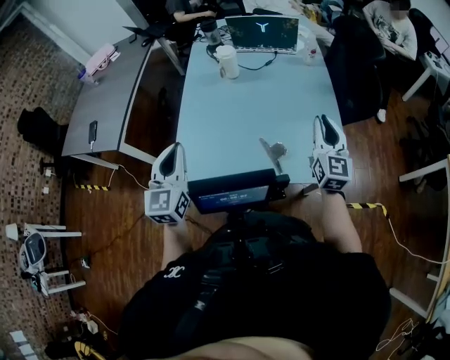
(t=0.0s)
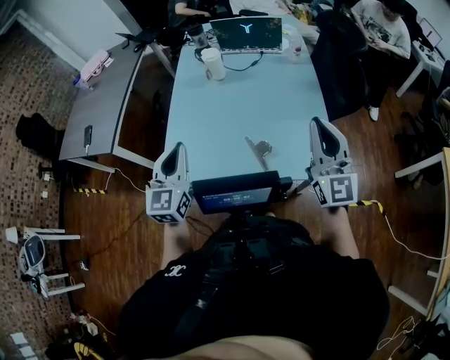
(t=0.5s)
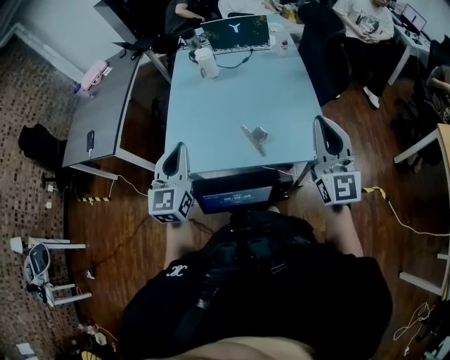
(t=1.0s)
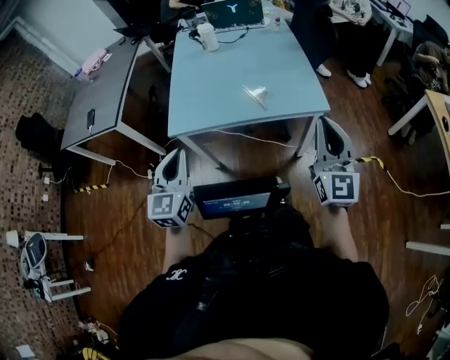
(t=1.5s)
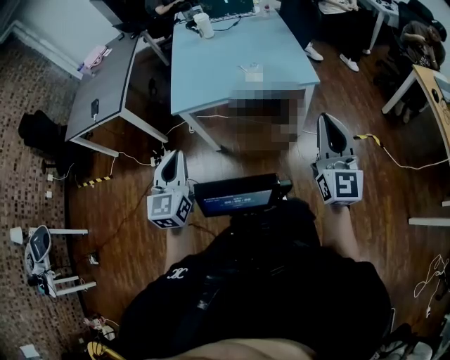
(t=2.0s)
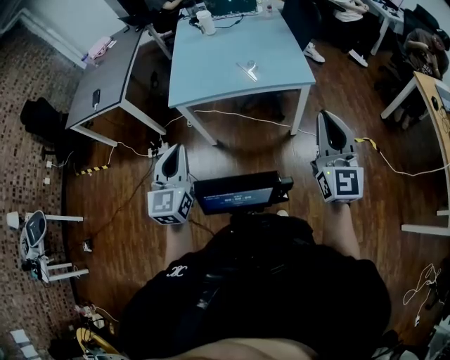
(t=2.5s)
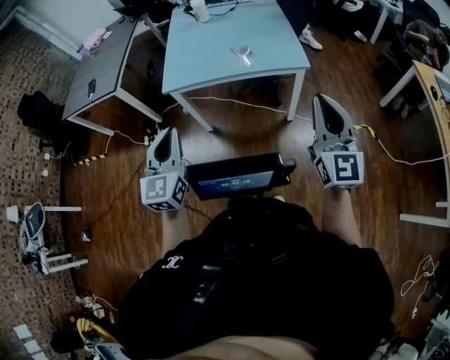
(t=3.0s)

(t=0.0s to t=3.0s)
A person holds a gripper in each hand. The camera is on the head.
t=0.0s - t=1.5s: Both grippers move backward, about 35 cm.
t=1.5s - t=3.0s: Both grippers travel together backward, approximately 20 cm.

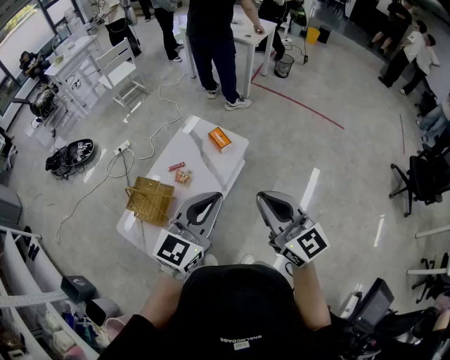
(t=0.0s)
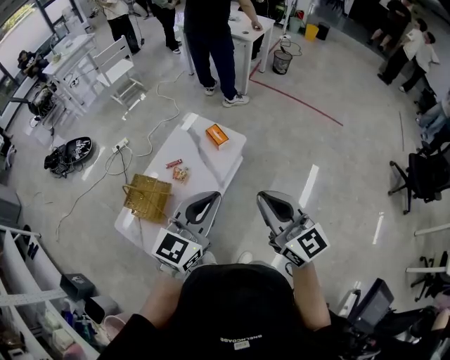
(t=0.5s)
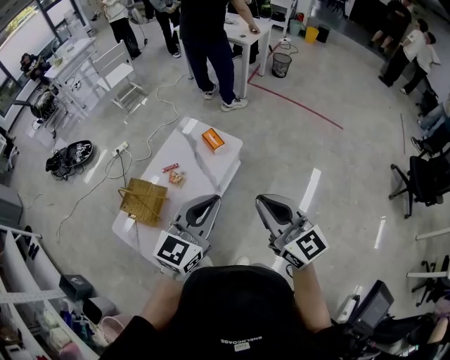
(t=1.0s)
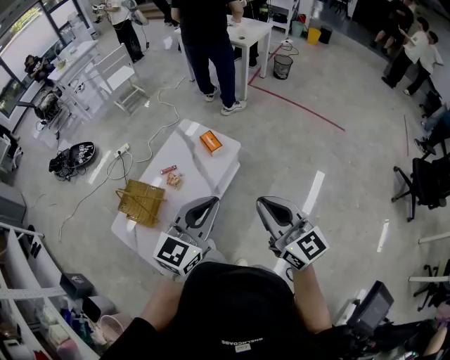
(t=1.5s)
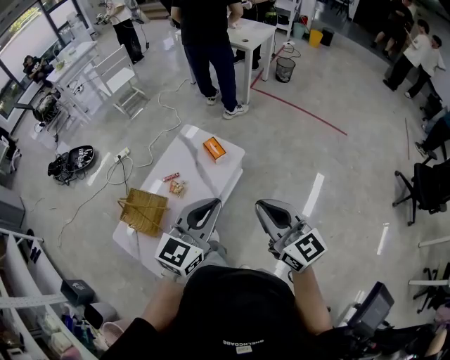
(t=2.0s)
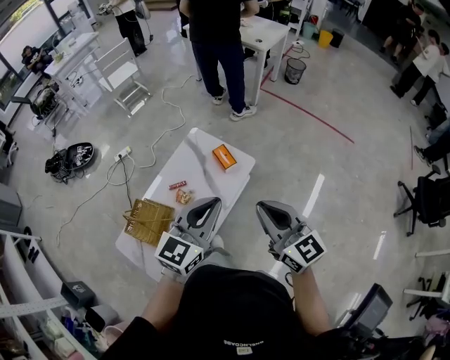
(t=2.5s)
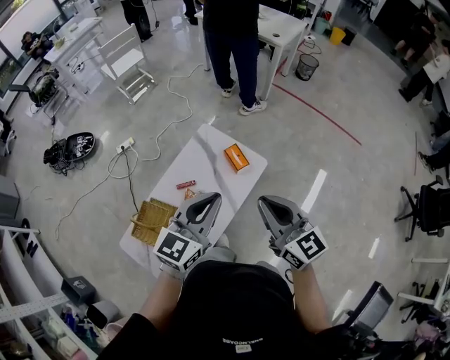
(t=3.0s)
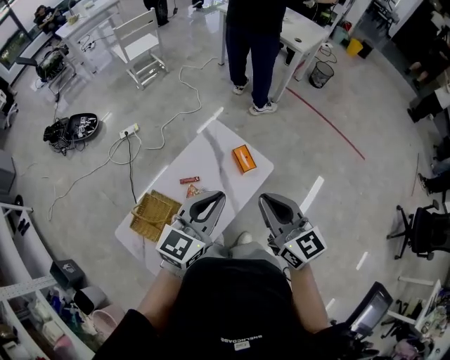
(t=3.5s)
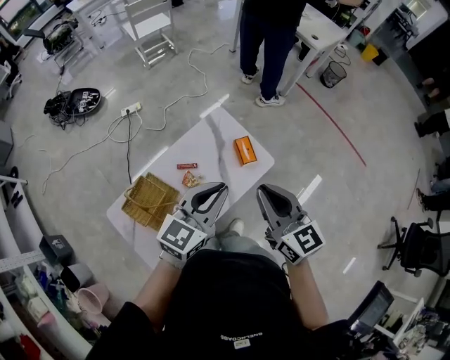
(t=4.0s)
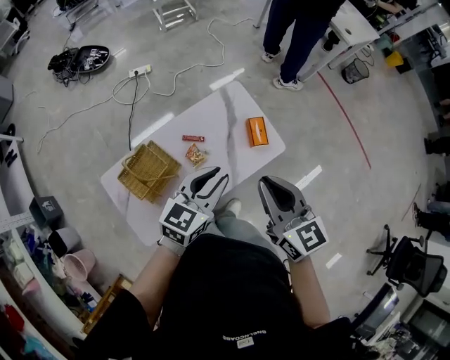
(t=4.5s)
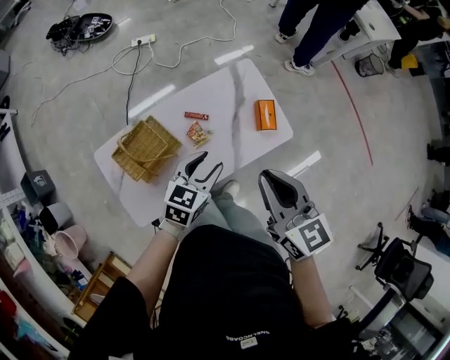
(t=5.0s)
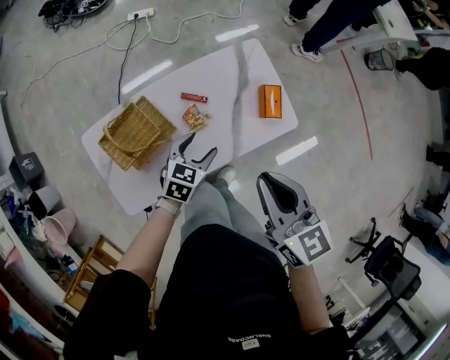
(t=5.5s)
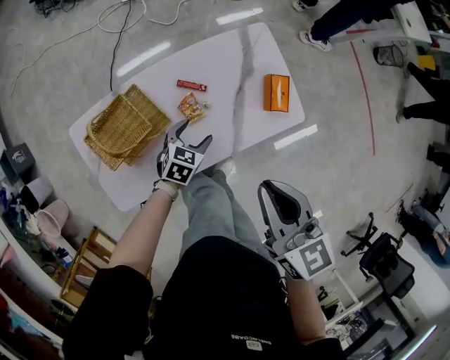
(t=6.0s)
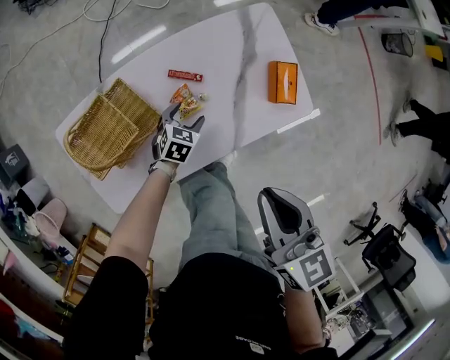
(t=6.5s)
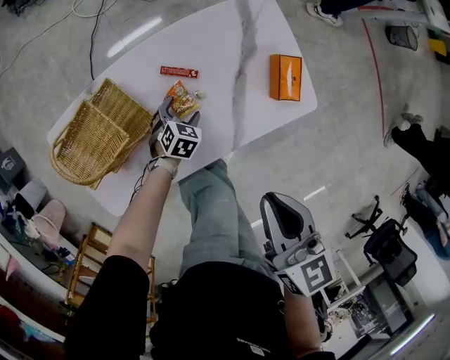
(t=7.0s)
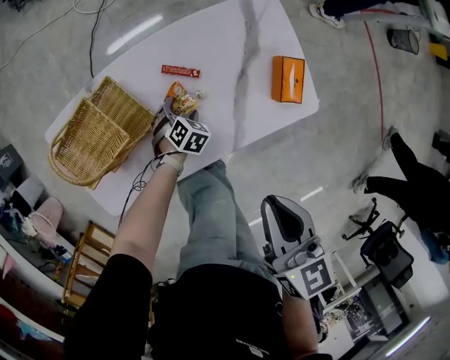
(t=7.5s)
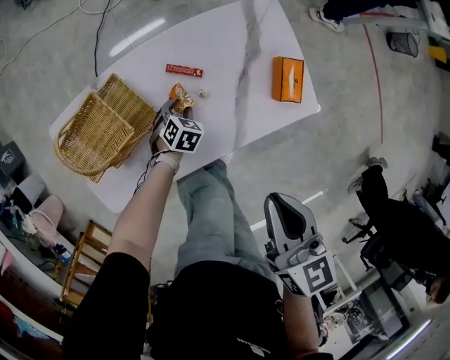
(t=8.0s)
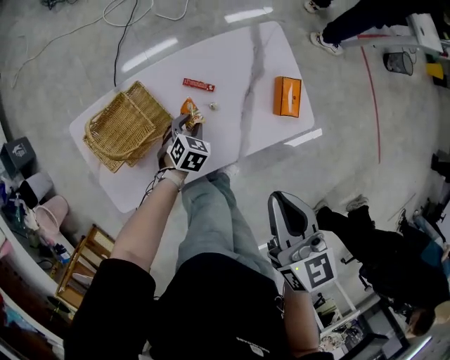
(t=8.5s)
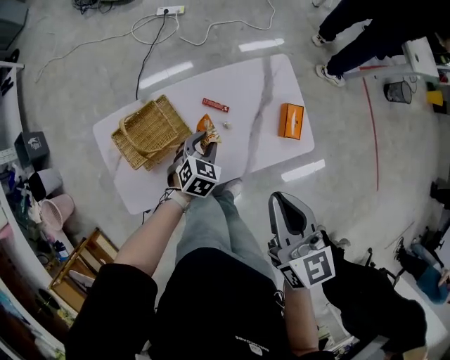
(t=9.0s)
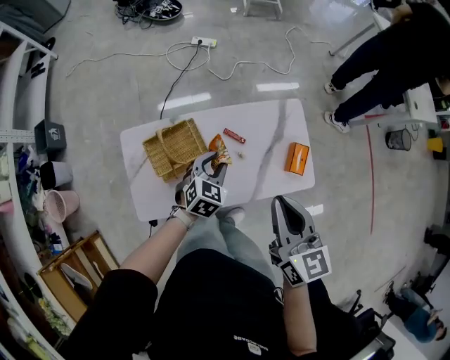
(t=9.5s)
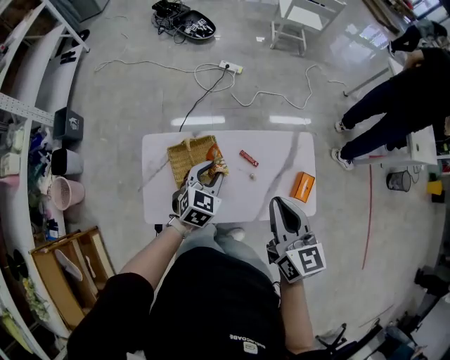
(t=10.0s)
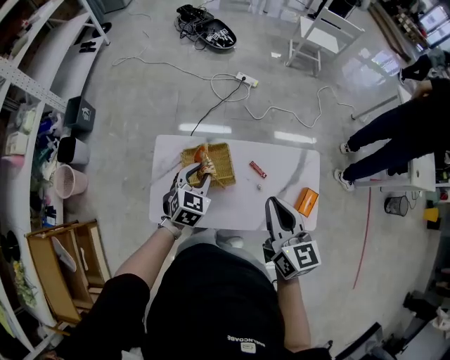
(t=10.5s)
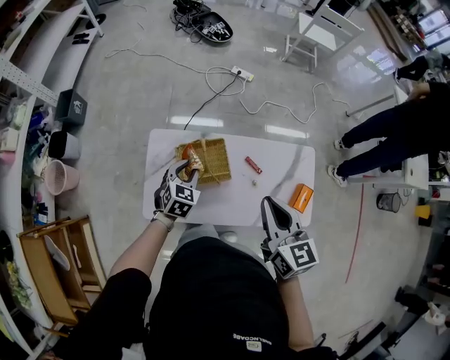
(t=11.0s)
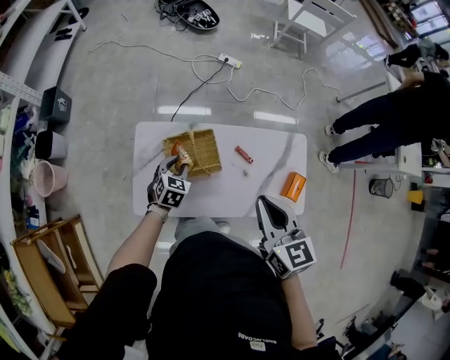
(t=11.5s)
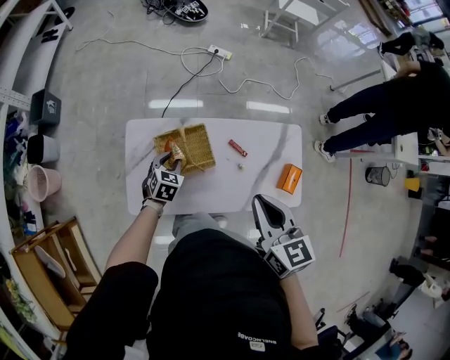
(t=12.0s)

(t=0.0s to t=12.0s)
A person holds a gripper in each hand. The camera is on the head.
t=0.0s - t=2.0s: The right gripper goes roughly 5 cm to the right, while the left gripper is displaced to the right and forward by roughly 10 cm.
t=2.0s - t=4.0s: The two grippers go roughly 30 cm forward and to the left.
t=4.0s - t=6.0s: The right gripper heads downward and to the left, covering about 20 cm, and swivels about 20 degrees; the left gripper heads downward, covering some 40 cm, points its fingers roughly 40 degrees further downward, and opens its fingers.
t=6.0s - t=8.0s: The left gripper shifts about 15 cm downward, rotates roughly 20 degrees, and closes up. Meanwhile the right gripper heads downward, covering approximately 10 cm.
t=8.0s - t=10.0s: The right gripper is displaced upward and to the left by approximately 20 cm, and swivels about 30 degrees; the left gripper travels upward by about 40 cm, and angles its fingers upward, by roughly 30 degrees.
t=10.0s - t=12.0s: The left gripper shifts roughly 20 cm downward and to the left. Meanwhile the right gripper heads to the left, covering some 5 cm.

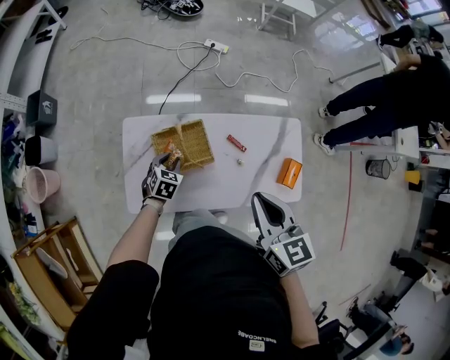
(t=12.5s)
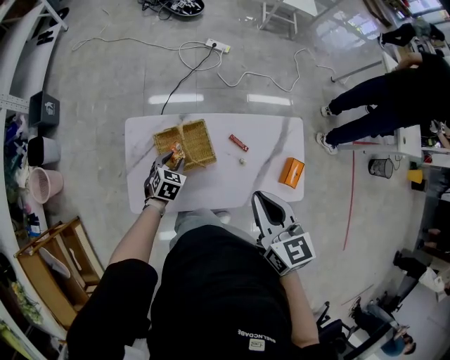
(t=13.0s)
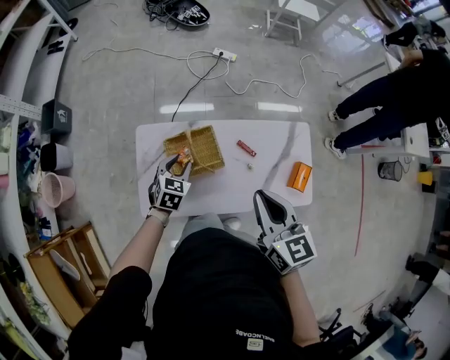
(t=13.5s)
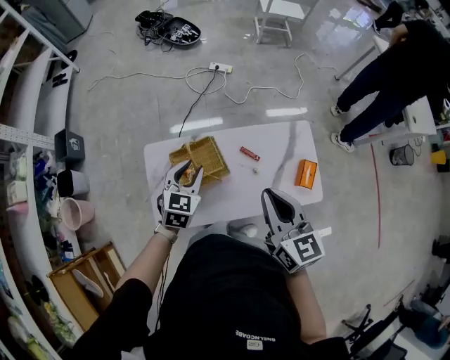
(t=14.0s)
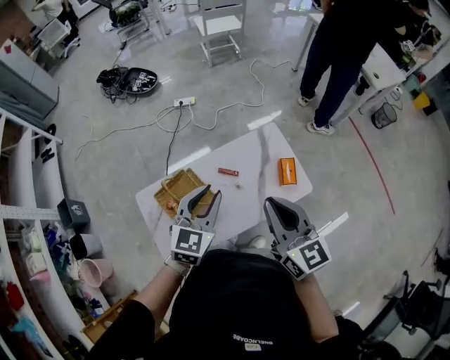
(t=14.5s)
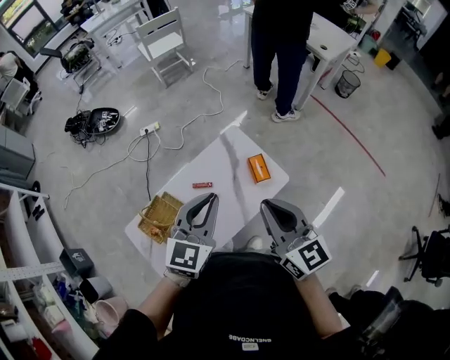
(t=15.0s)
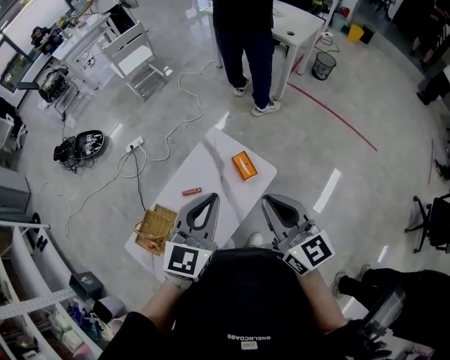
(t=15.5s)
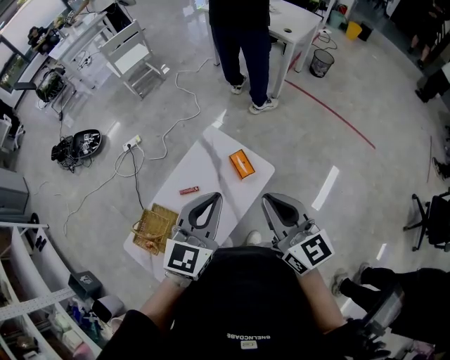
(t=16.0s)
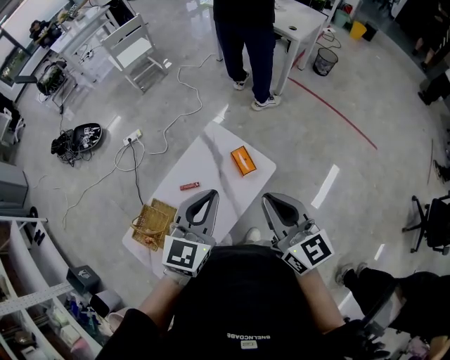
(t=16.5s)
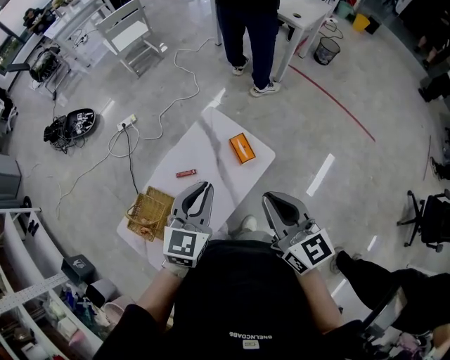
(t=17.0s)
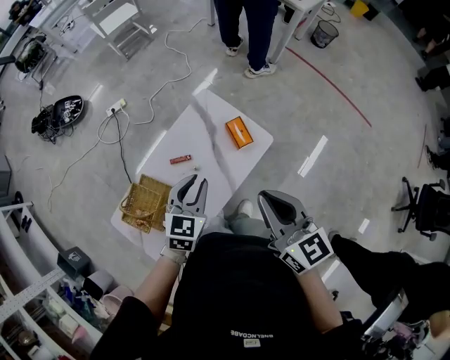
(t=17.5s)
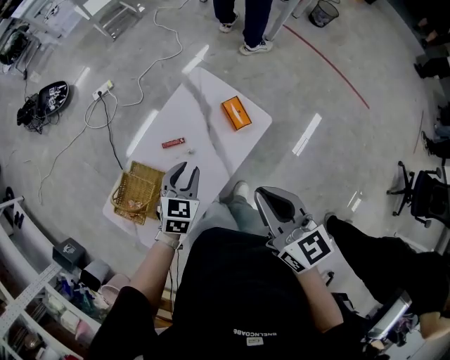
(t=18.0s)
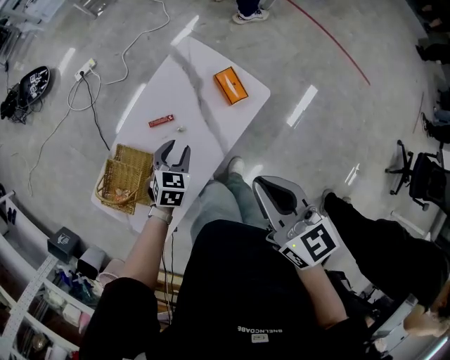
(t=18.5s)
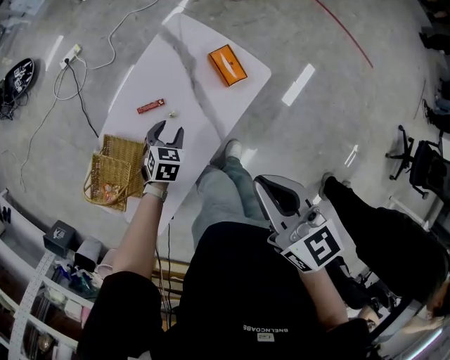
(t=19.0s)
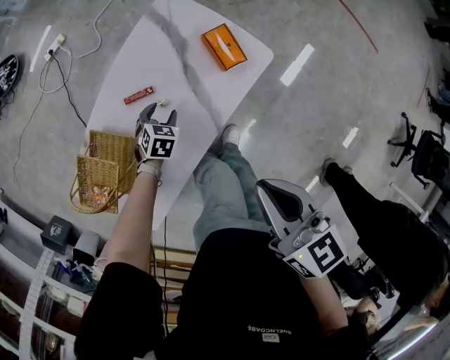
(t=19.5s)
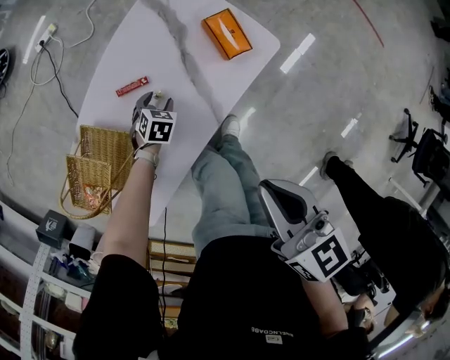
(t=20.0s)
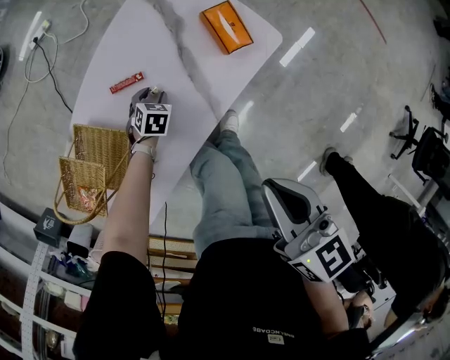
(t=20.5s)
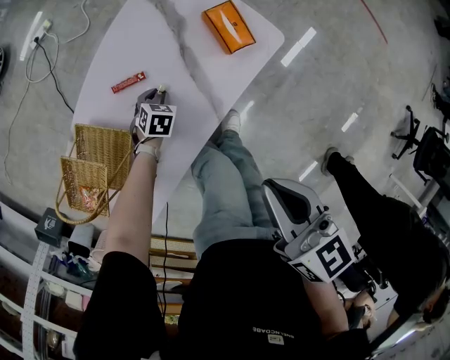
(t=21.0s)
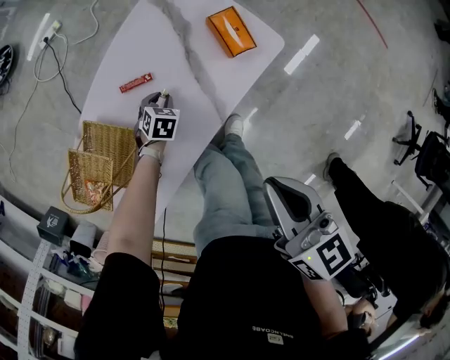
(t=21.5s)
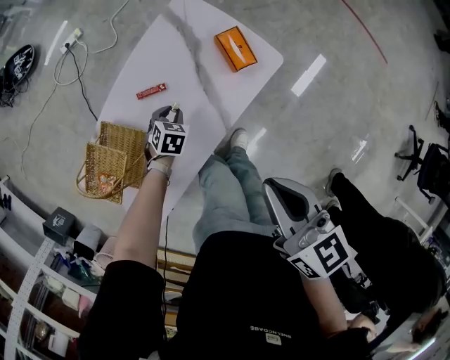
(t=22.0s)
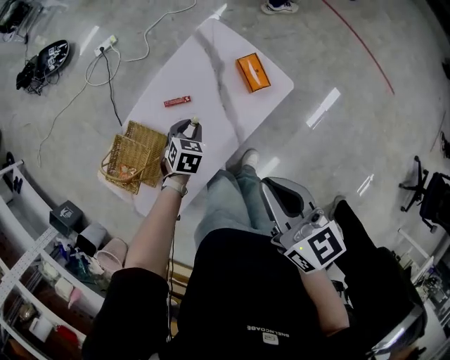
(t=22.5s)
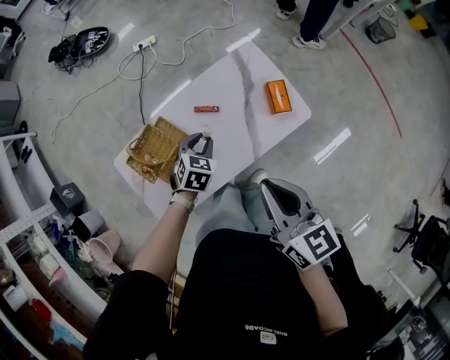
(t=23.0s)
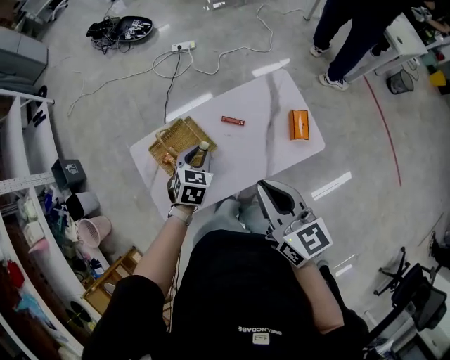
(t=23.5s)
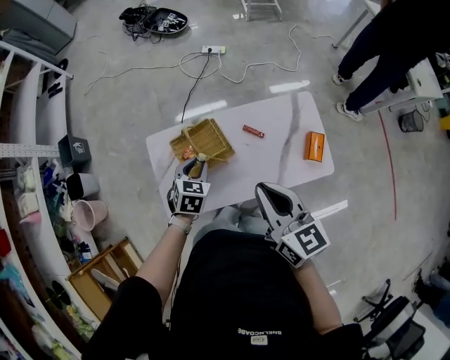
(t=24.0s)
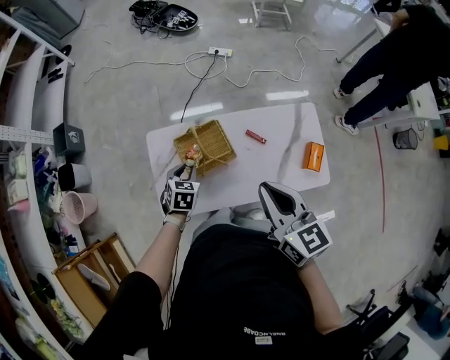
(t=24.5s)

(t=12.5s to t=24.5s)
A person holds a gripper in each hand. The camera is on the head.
t=12.5s - t=14.5s: The left gripper shifts approximately 40 cm upward and to the right, and angles its fingers upward, by approximately 30 degrees; the right gripper travels to the right and upward by about 15 cm, and turns by some 30 degrees.
t=14.5s - t=16.5s: The two grippers go some 20 cm to the right. The left gripper rotates approximately 20 degrees; the right gripper changes its angle by some 20 degrees.
t=16.5s - t=18.5s: The left gripper goes some 35 cm downward, tips its fingers downward by some 40 degrees, and opens its fingers. Meanwhile the right gripper shifts about 15 cm downward and to the left, and rotates some 20 degrees.
t=18.5s - t=20.5s: The left gripper shifts approximately 30 cm downward, and swivels about 20 degrees. The right gripper goes roughly 15 cm downward.
t=20.5s - t=22.5s: The right gripper travels upward by approximately 10 cm, while the left gripper is displaced upward by roughly 25 cm.
t=22.5s - t=24.5s: The right gripper ends up about 25 cm from where it was, and turns by roughly 30 degrees. Meanwhile the left gripper changes place by approximately 35 cm, and changes its angle by some 50 degrees.
